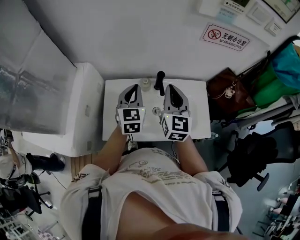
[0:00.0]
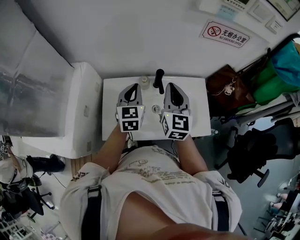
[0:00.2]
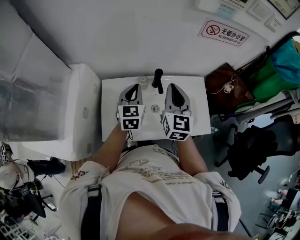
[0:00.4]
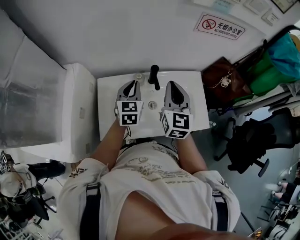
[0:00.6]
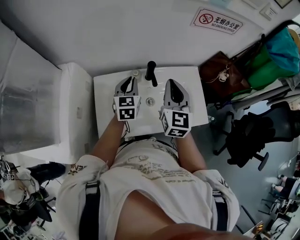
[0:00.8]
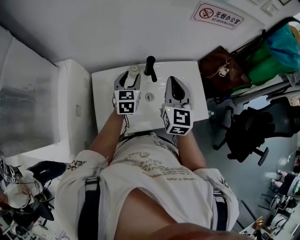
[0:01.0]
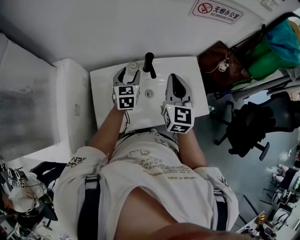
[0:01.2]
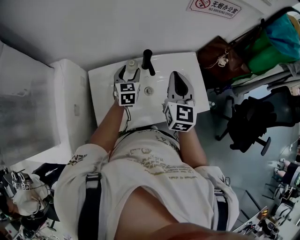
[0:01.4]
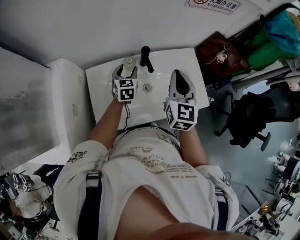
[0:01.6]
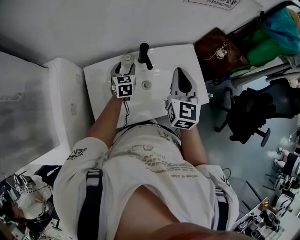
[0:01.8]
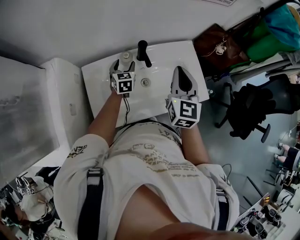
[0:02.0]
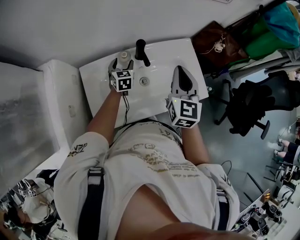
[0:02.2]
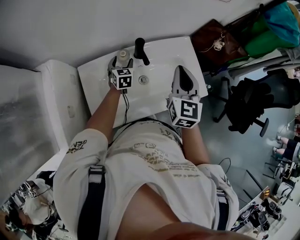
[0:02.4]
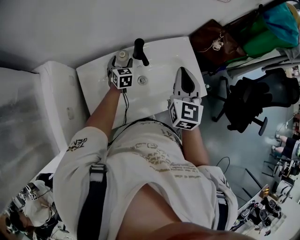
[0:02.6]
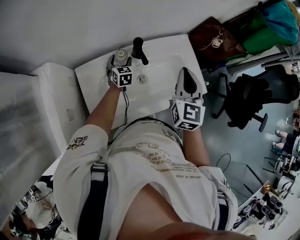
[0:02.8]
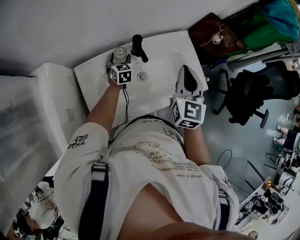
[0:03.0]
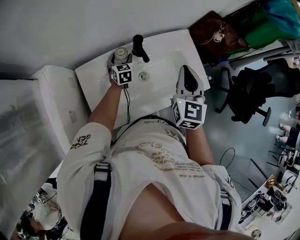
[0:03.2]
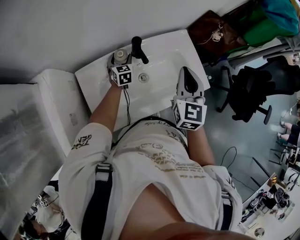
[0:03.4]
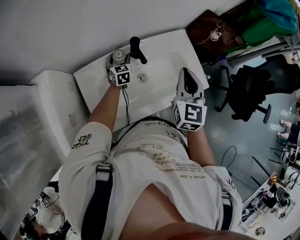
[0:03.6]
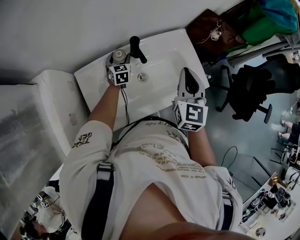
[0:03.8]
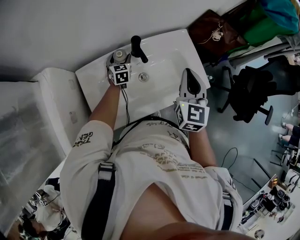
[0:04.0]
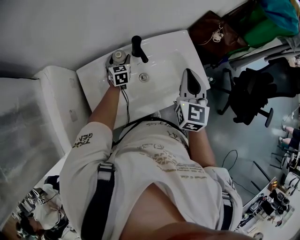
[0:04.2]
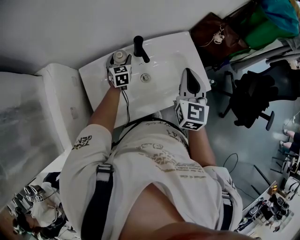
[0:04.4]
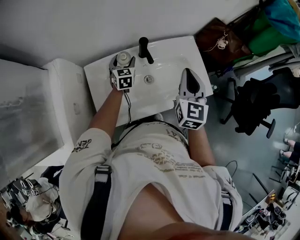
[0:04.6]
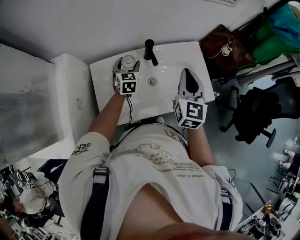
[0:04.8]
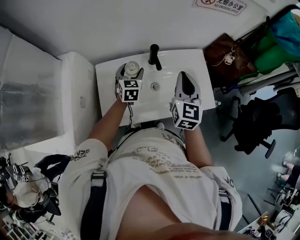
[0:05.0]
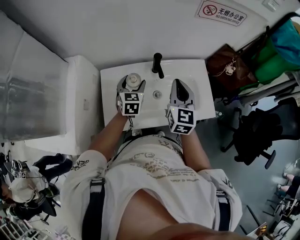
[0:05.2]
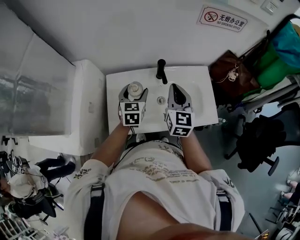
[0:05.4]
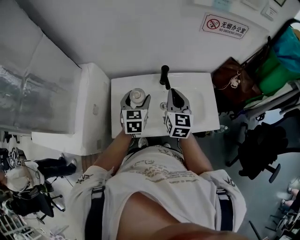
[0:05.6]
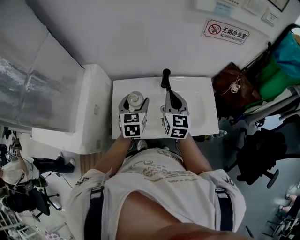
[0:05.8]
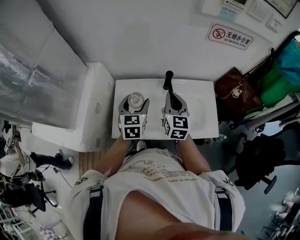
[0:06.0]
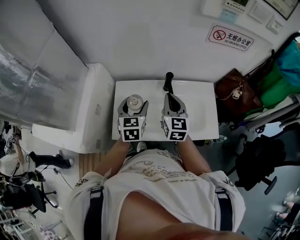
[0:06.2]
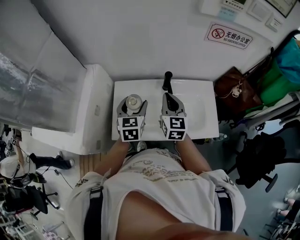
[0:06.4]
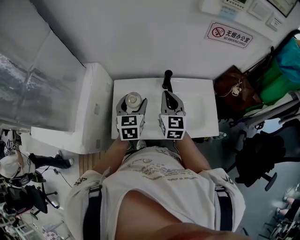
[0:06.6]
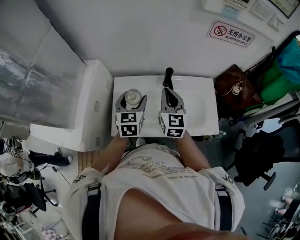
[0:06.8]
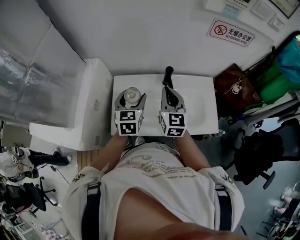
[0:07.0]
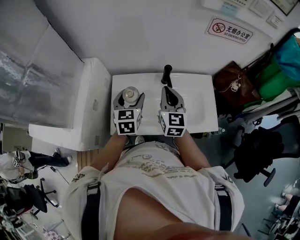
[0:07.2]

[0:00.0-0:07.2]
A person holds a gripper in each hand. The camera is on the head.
0:00.0 to 0:01.4: The left gripper is displaced downward and forward by approximately 15 cm, and opens up, while the right gripper ends up approximately 5 cm from where it was.
0:01.4 to 0:02.8: The left gripper moves downward and forward, roughly 15 cm. Meanwhile the right gripper moves some 5 cm.
0:02.8 to 0:04.4: The grippers move only a little.
0:04.4 to 0:05.8: The left gripper goes approximately 25 cm upward and backward. Meanwhile the right gripper shifts approximately 10 cm to the left, and swivels approximately 30 degrees.
0:05.8 to 0:07.2: The grippers move only a little.

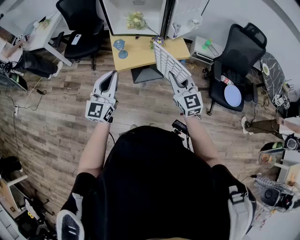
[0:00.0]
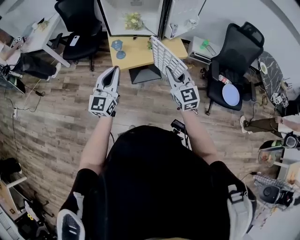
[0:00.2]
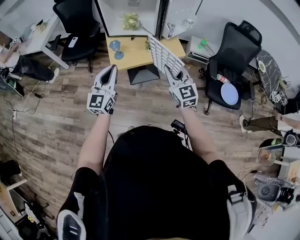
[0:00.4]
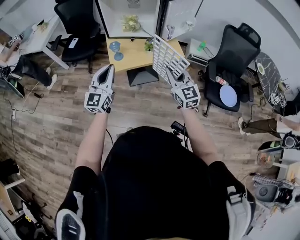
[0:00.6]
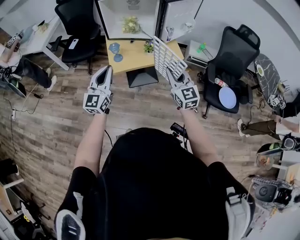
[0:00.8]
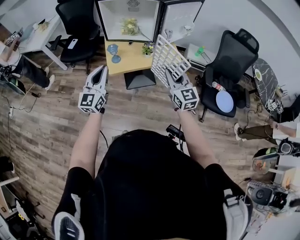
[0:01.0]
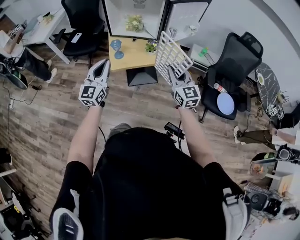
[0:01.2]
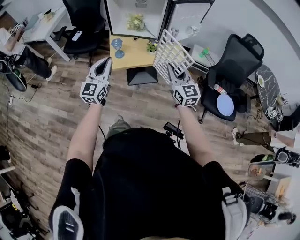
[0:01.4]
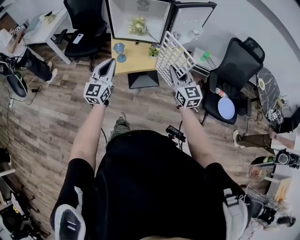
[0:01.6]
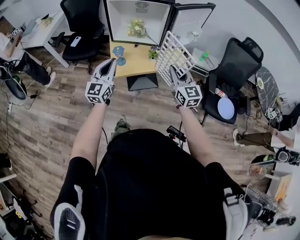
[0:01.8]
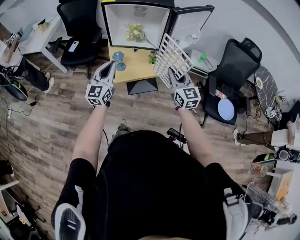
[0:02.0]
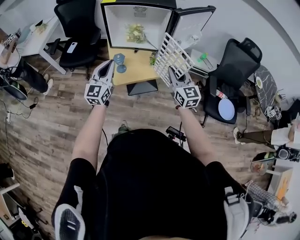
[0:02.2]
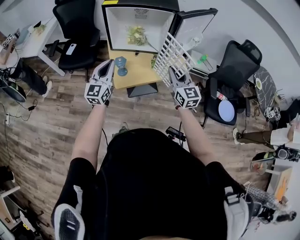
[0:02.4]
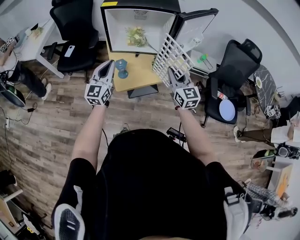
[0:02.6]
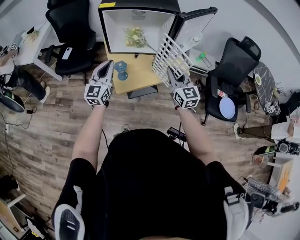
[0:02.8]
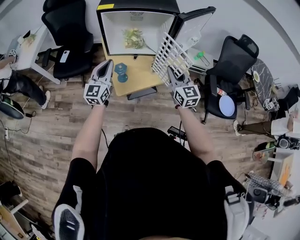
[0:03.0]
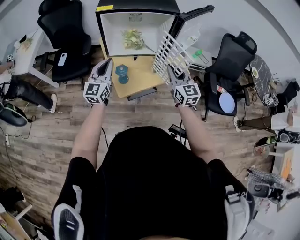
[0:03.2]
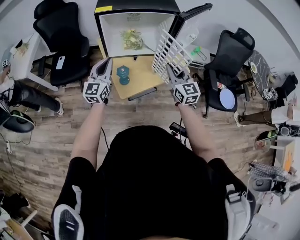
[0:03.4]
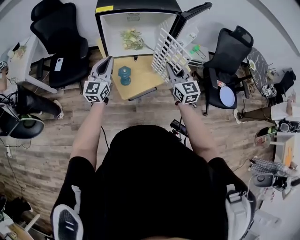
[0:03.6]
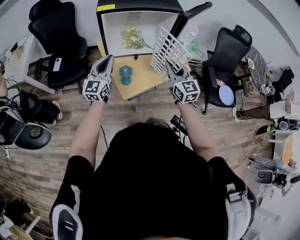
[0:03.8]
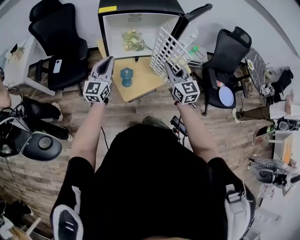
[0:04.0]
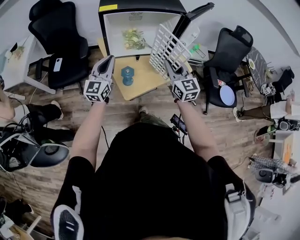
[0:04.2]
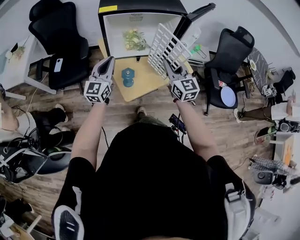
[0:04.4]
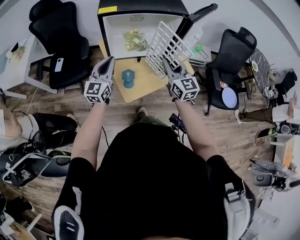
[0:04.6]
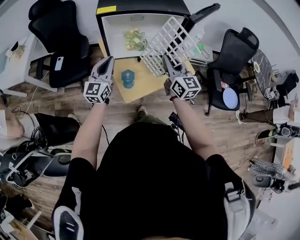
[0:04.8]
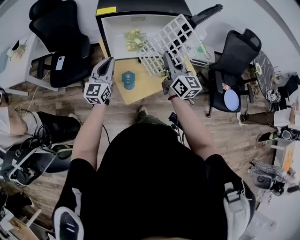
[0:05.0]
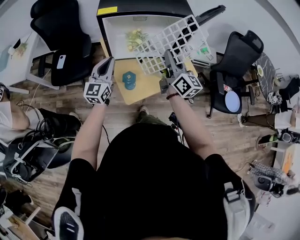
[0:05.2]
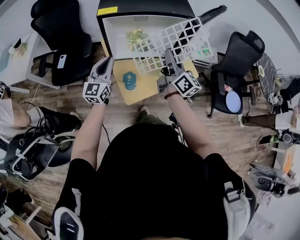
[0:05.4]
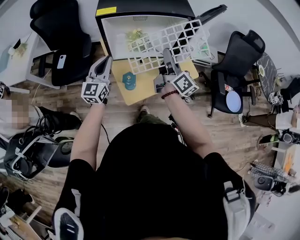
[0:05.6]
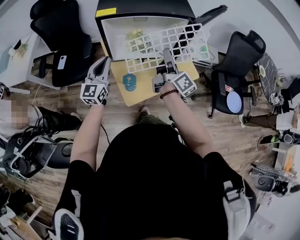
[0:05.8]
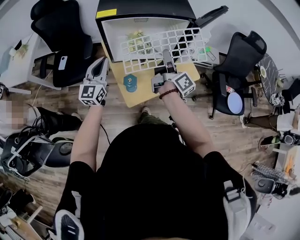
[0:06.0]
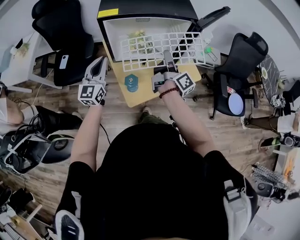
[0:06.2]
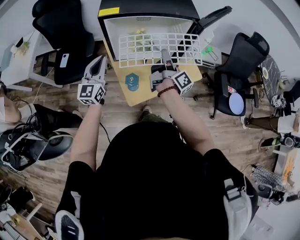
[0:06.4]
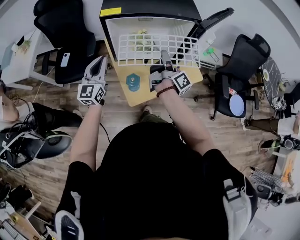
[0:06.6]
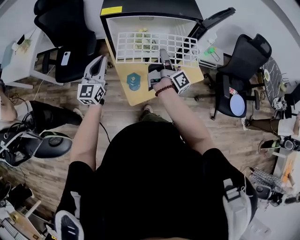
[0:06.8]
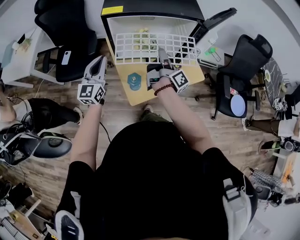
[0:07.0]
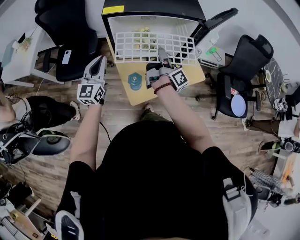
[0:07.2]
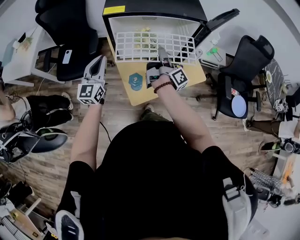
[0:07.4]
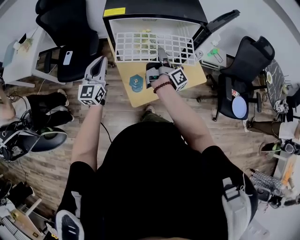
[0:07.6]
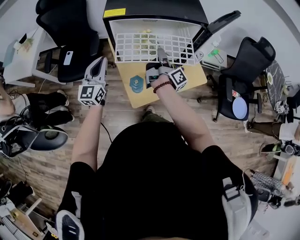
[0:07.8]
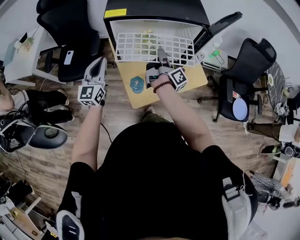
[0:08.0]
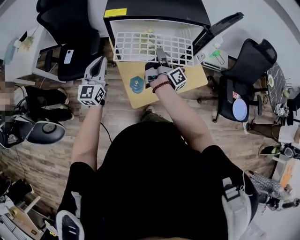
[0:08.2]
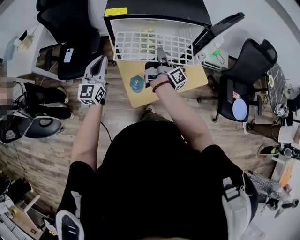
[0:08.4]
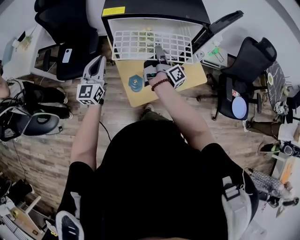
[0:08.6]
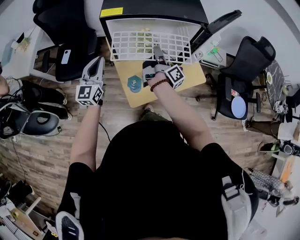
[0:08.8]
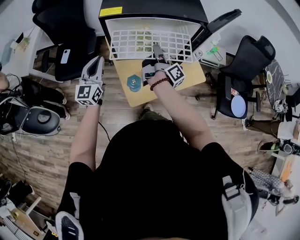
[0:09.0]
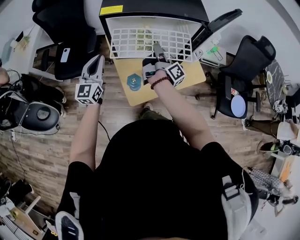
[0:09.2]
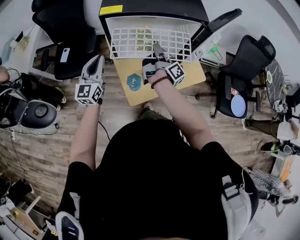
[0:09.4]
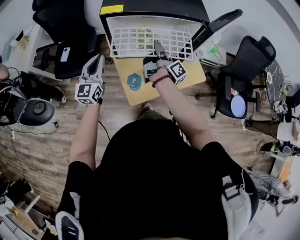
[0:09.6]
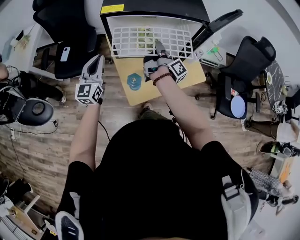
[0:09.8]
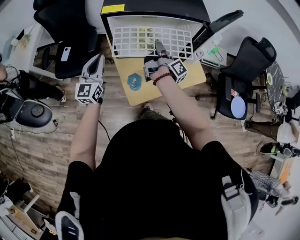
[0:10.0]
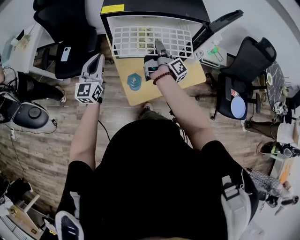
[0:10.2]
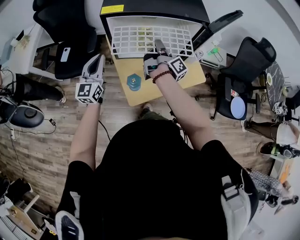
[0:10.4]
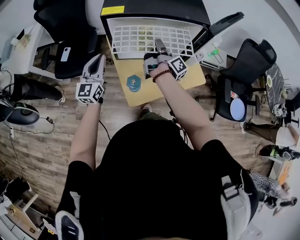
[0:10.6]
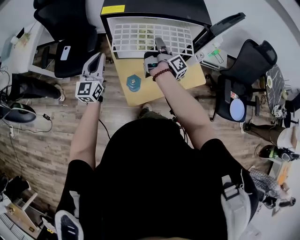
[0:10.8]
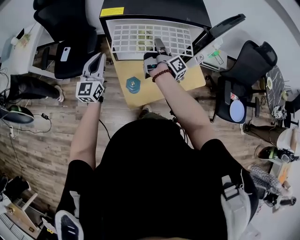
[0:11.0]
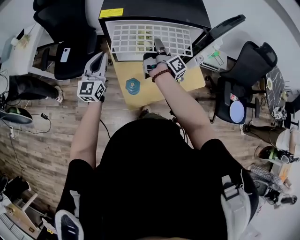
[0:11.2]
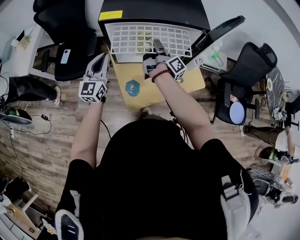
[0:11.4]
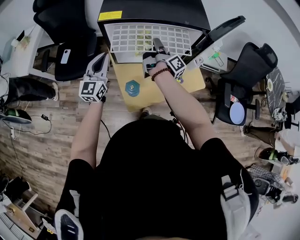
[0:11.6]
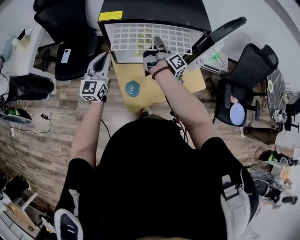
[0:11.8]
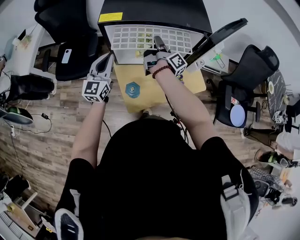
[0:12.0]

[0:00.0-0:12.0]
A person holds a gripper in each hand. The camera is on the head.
0:00.0 to 0:01.6: Both grippers move forward, roughly 5 cm.
0:01.6 to 0:03.0: The two grippers go some 15 cm forward and to the left.
0:03.0 to 0:04.4: The right gripper travels to the left by about 10 cm; the left gripper travels forward by about 5 cm.
0:04.4 to 0:06.0: The right gripper shifts approximately 10 cm forward, and rotates around the line of its fingers by approximately 70 degrees, clockwise from behind, while the left gripper moves approximately 5 cm.
0:06.0 to 0:07.6: The right gripper moves downward and to the left, approximately 10 cm, and swivels approximately 20 degrees.
0:07.6 to 0:10.4: The grippers move only a little.
0:10.4 to 0:12.0: The right gripper travels forward by some 5 cm. Meanwhile the left gripper ends up some 5 cm from where it was.

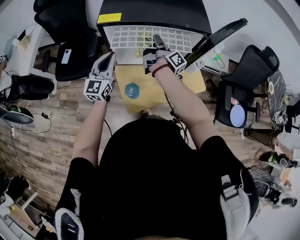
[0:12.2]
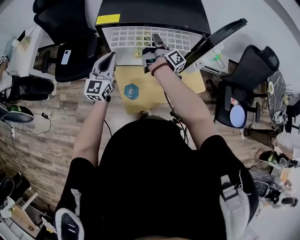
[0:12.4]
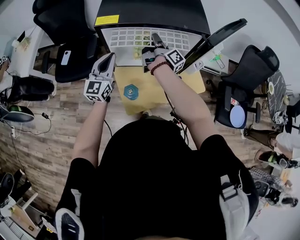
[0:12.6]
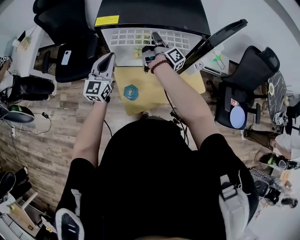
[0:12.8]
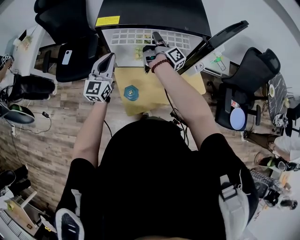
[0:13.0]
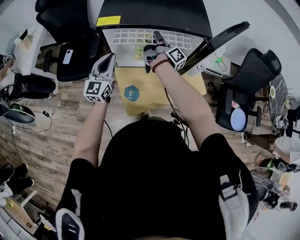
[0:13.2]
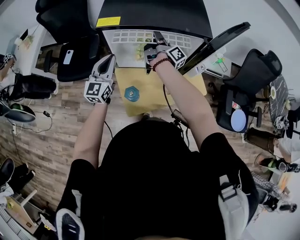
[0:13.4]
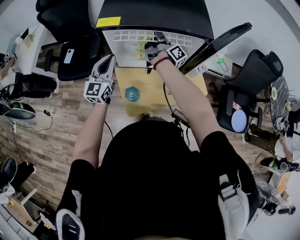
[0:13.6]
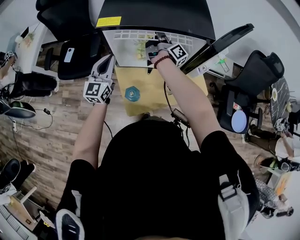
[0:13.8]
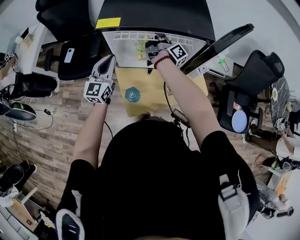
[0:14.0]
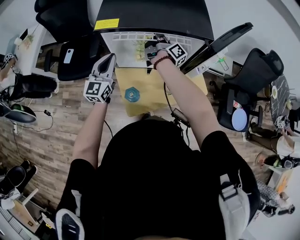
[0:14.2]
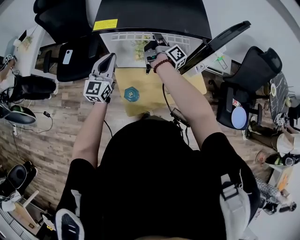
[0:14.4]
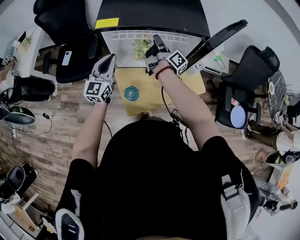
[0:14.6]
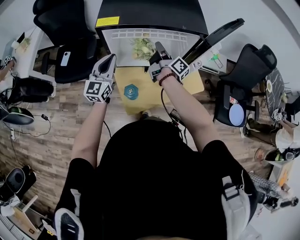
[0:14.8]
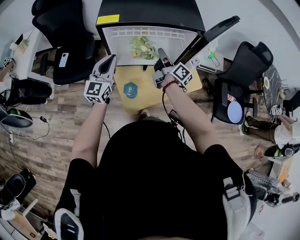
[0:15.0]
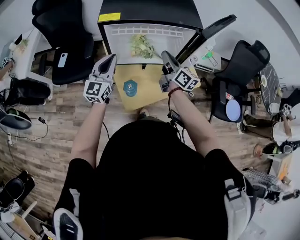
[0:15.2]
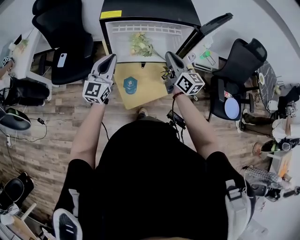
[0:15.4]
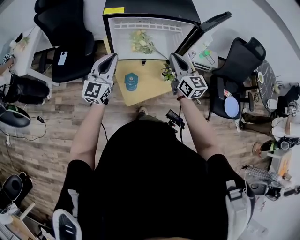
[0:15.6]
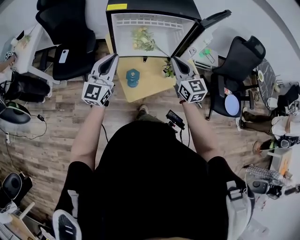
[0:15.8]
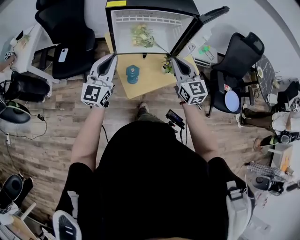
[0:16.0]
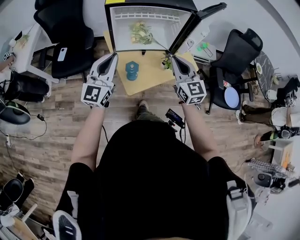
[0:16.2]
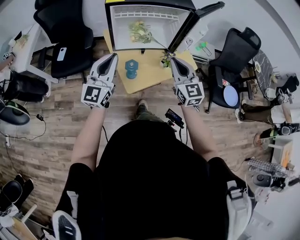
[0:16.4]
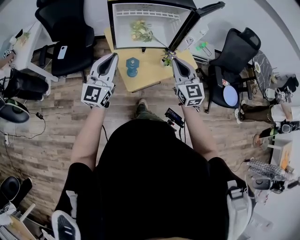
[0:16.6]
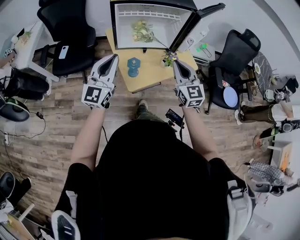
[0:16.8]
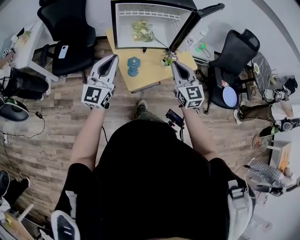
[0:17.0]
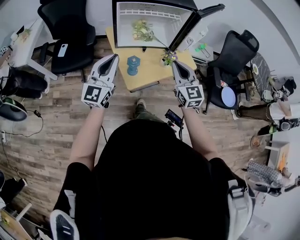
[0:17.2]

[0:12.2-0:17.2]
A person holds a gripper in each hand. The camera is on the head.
0:12.2 to 0:13.8: The right gripper moves forward, roughly 10 cm.
0:13.8 to 0:15.6: The left gripper travels backward and upward by approximately 10 cm. Meanwhile the right gripper moves backward, approximately 25 cm, and twists some 80 degrees counterclockwise, seen from behind.
0:15.6 to 0:17.2: Both grippers move backward, about 15 cm. The right gripper changes its angle by some 20 degrees.
